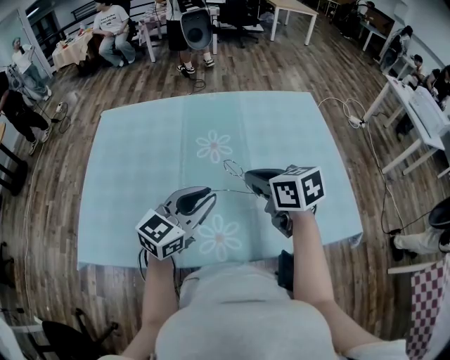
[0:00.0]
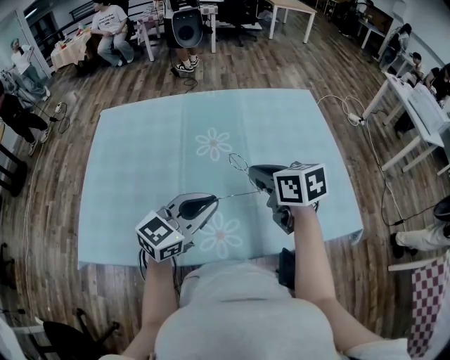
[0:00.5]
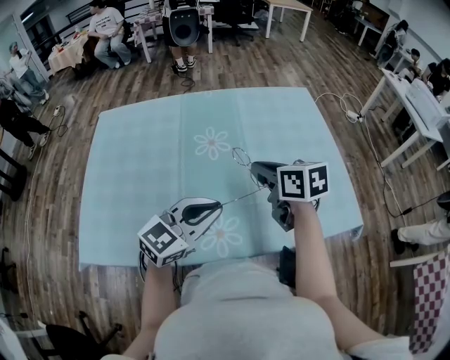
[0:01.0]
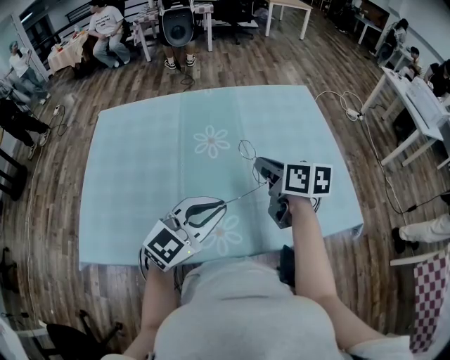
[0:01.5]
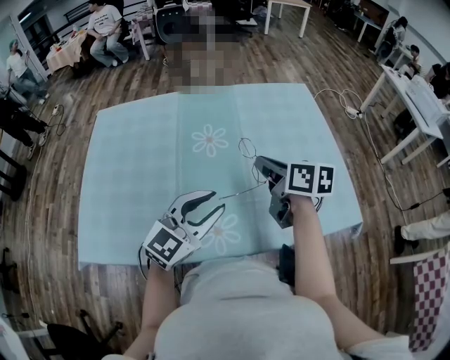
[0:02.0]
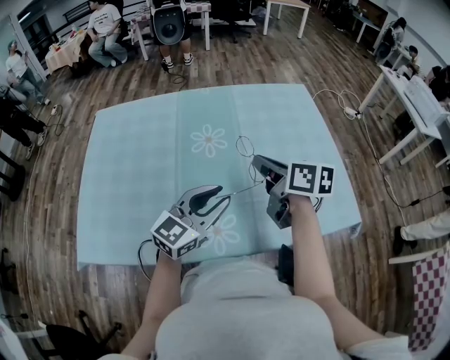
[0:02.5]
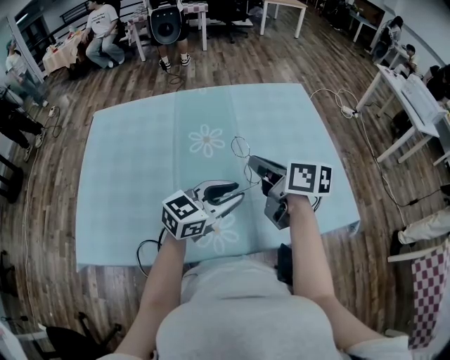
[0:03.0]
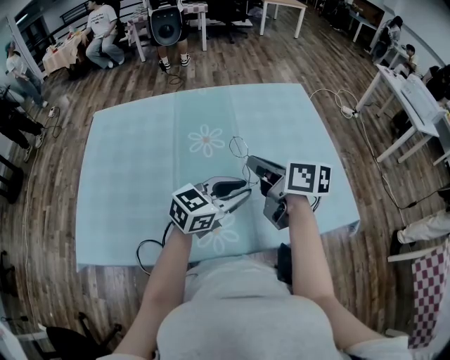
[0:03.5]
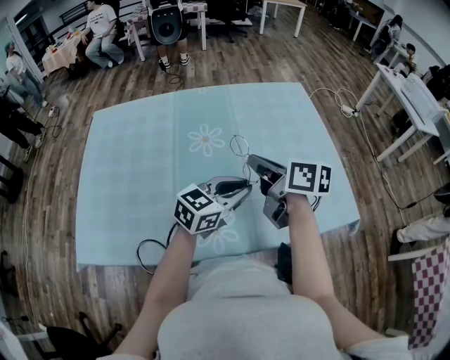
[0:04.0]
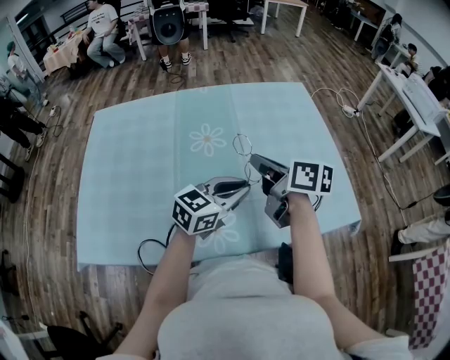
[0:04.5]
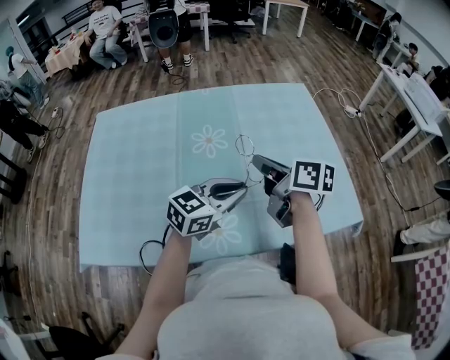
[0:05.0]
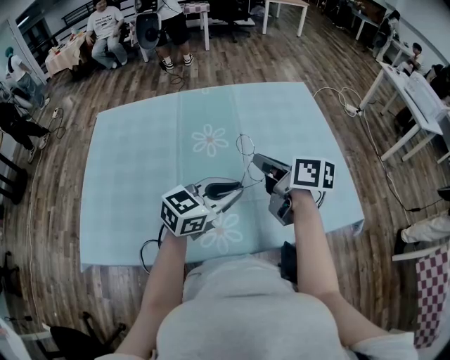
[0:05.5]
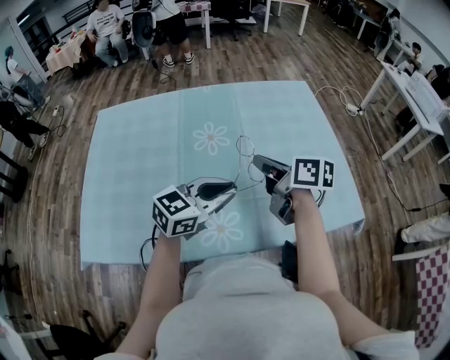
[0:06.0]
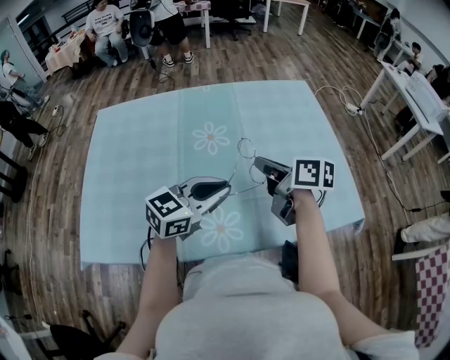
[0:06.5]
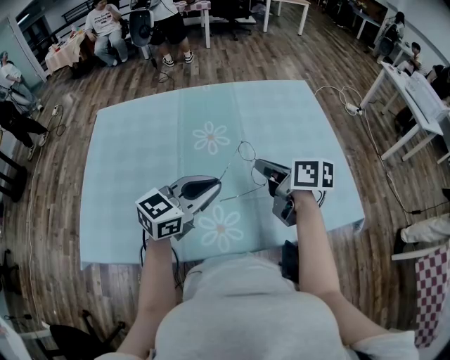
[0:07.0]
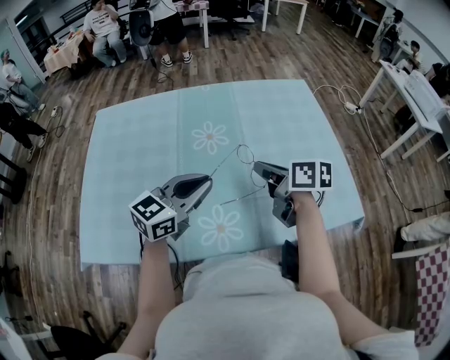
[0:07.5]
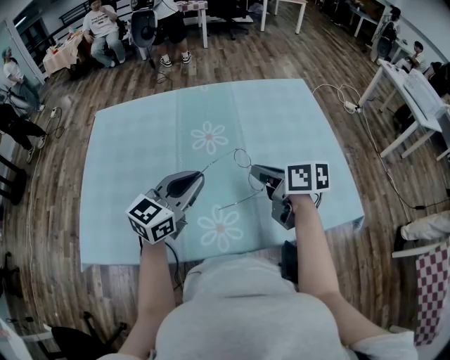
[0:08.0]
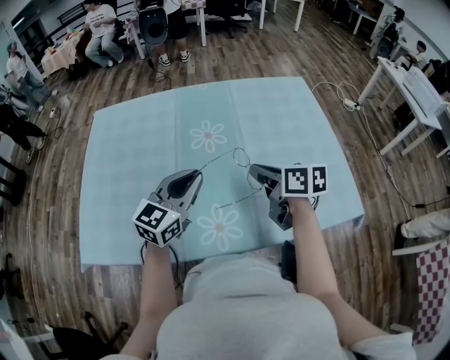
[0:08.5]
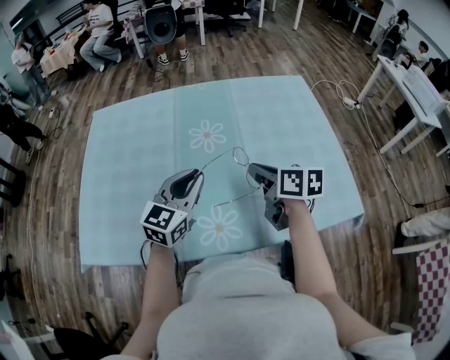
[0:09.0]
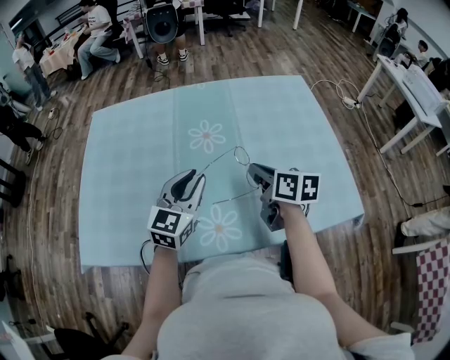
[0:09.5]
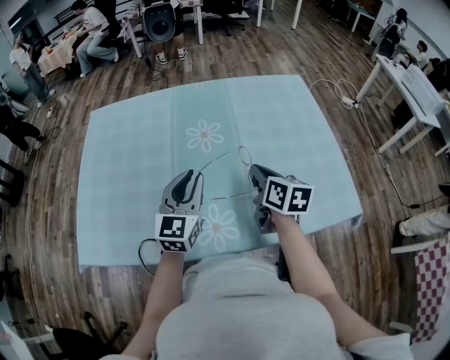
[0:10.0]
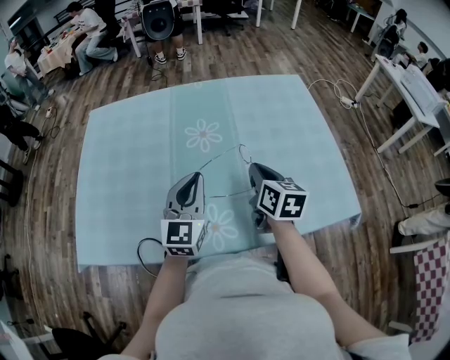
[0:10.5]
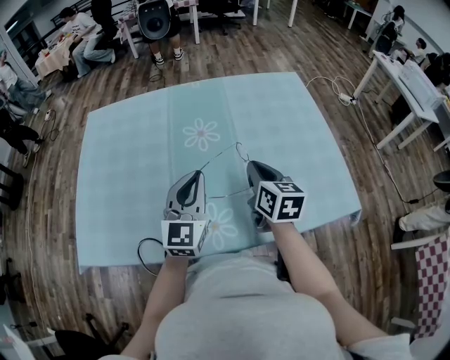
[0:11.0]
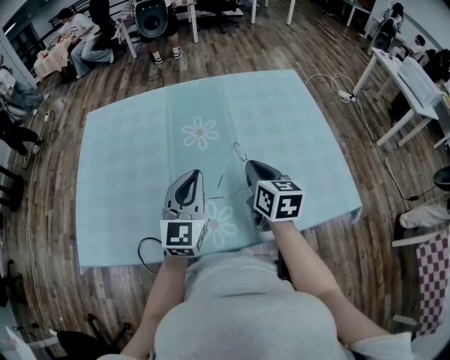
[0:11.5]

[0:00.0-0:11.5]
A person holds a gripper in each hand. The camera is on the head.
0:00.0 to 0:02.0: The right gripper turns by roughly 30 degrees.
0:02.0 to 0:04.0: The left gripper travels to the right and forward by some 10 cm, and changes its angle by some 20 degrees.
0:04.0 to 0:06.0: The left gripper goes about 5 cm to the left.
0:06.0 to 0:07.5: The left gripper travels to the left by about 5 cm.
0:07.5 to 0:09.5: The left gripper swivels approximately 30 degrees.
0:09.5 to 0:11.5: The right gripper swivels approximately 20 degrees.

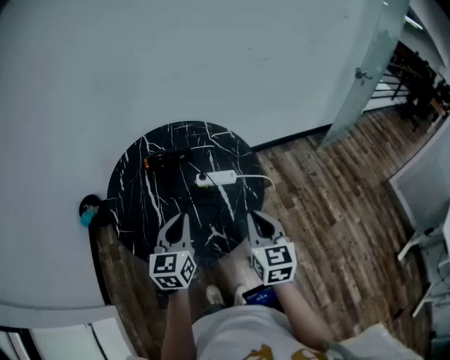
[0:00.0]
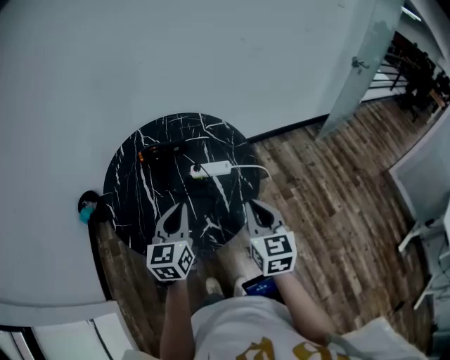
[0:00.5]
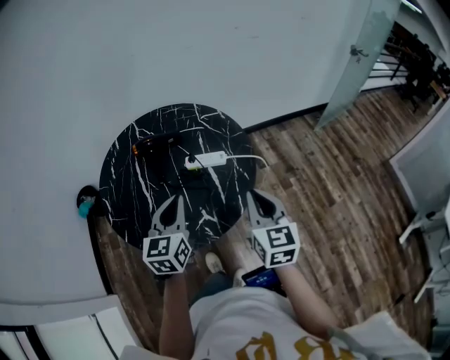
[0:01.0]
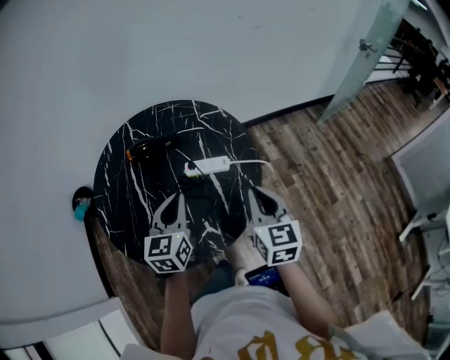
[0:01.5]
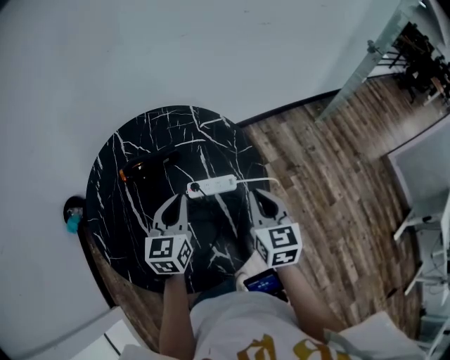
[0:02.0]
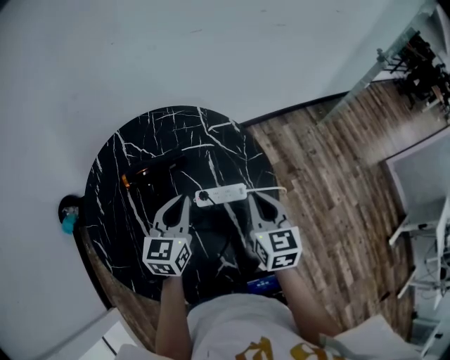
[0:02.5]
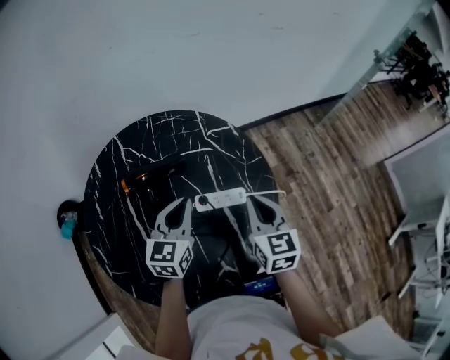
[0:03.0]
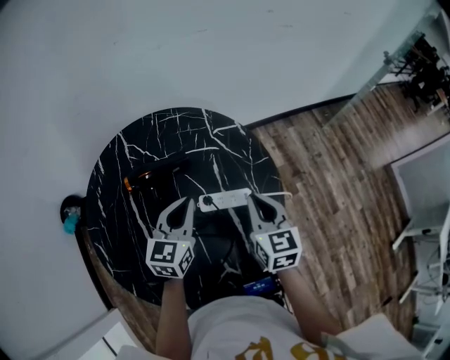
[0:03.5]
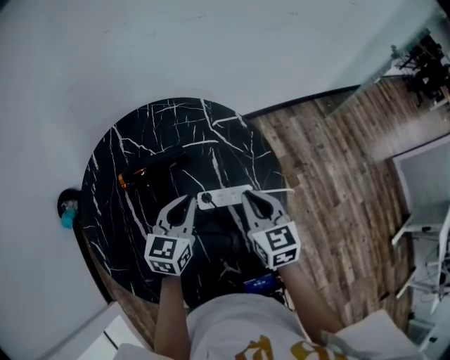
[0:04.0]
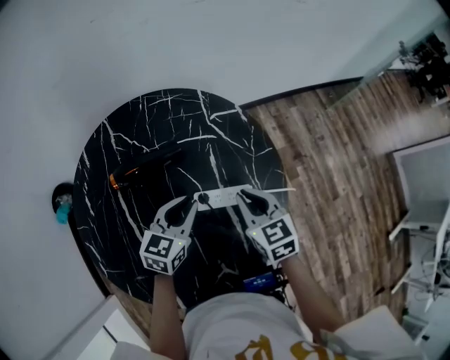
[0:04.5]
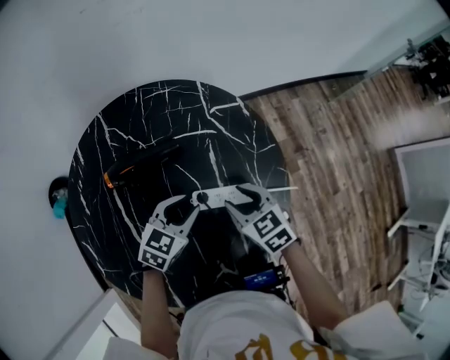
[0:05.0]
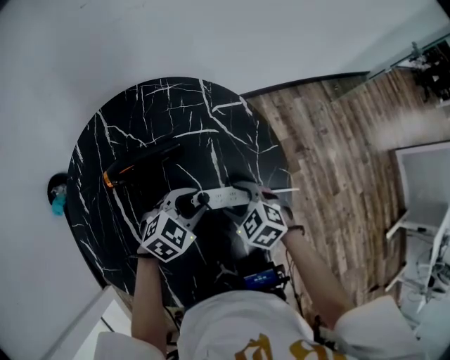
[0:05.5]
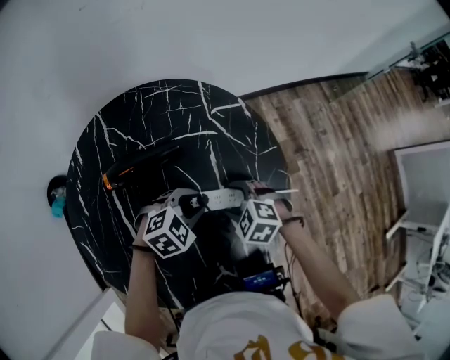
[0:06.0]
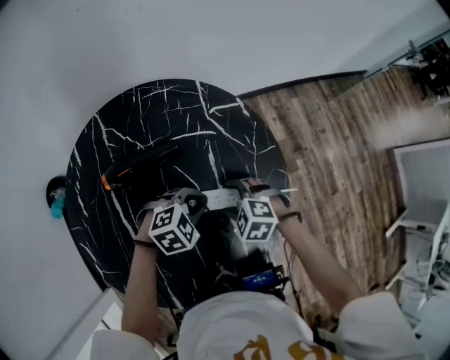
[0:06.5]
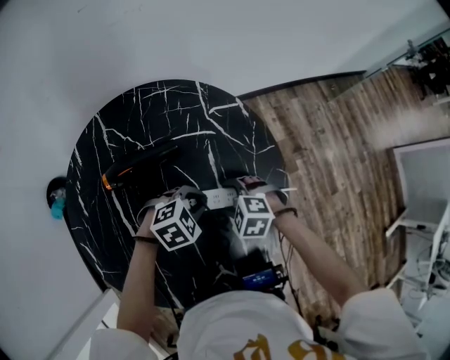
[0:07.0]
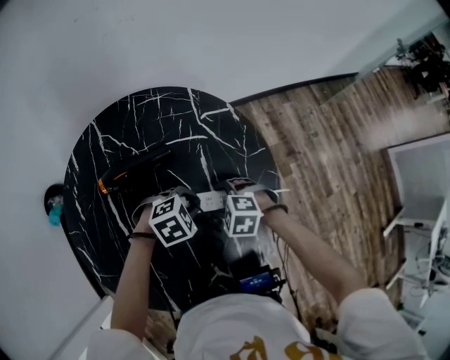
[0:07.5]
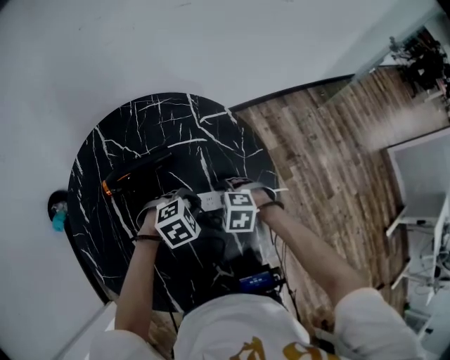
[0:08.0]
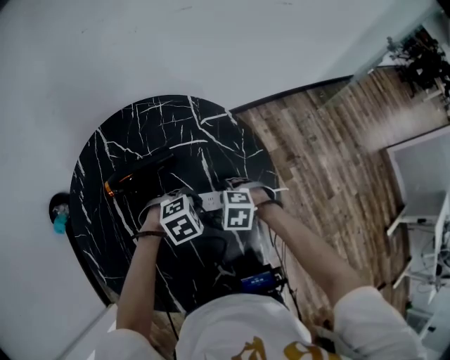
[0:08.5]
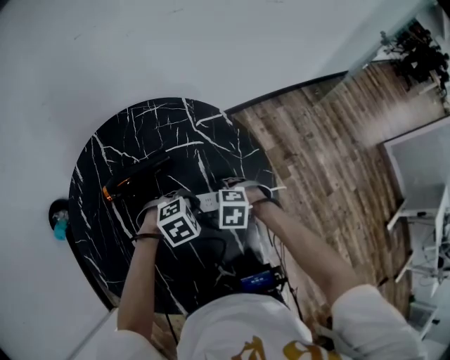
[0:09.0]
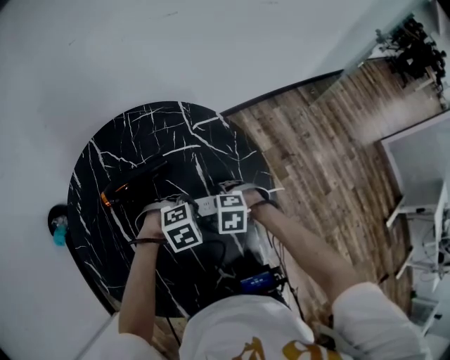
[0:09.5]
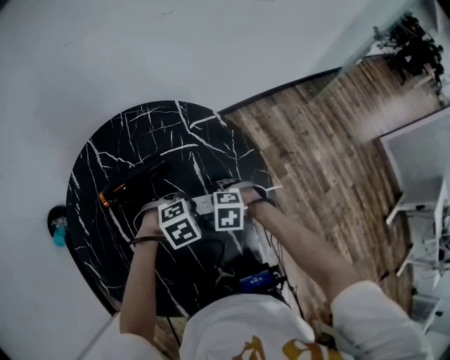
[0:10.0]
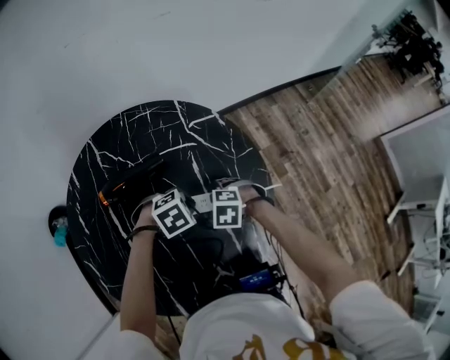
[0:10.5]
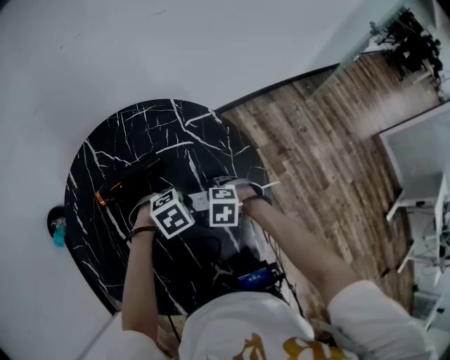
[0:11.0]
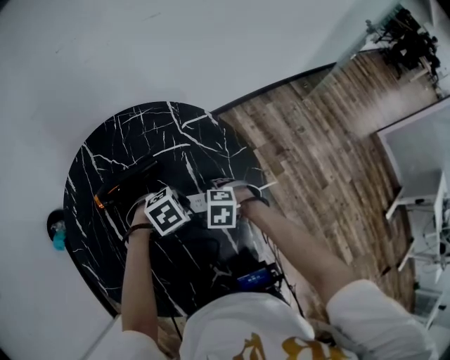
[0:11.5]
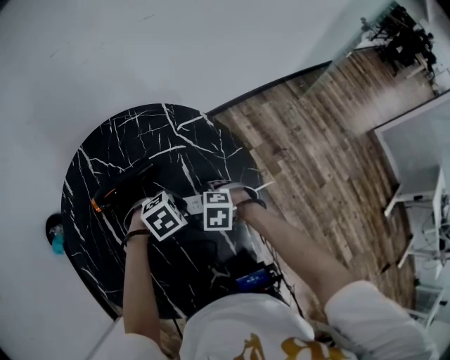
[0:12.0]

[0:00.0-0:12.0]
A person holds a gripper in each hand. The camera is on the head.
0:00.0 to 0:02.0: Both grippers move forward, about 20 cm.
0:02.0 to 0:04.0: The left gripper heads downward and forward, covering about 10 cm. The right gripper moves to the left, forward and downward, some 10 cm.
0:04.0 to 0:06.0: The two grippers go some 15 cm downward. The left gripper points its fingers about 30 degrees further downward, and opens its fingers, while the right gripper angles its fingers downward, by some 40 degrees, and opens.
0:06.0 to 0:08.0: There are only small adjustments of the grippers.
0:08.0 to 0:12.0: The grippers make only small movements.

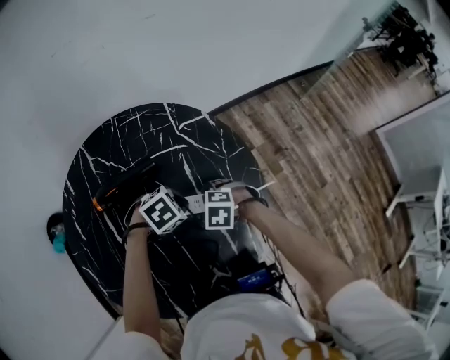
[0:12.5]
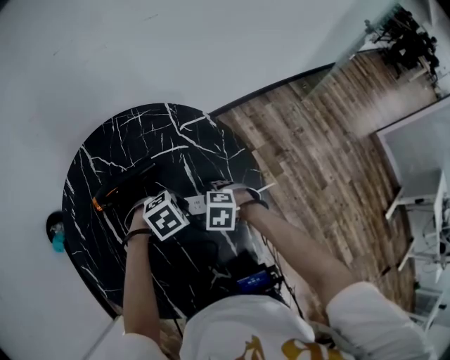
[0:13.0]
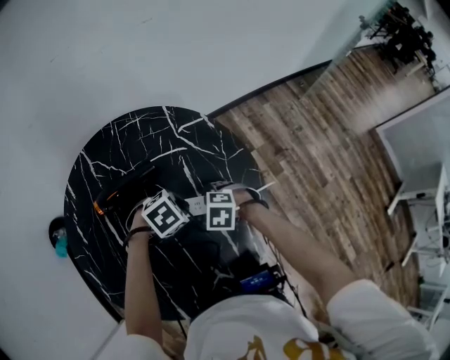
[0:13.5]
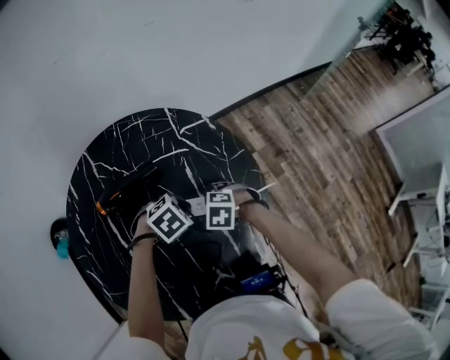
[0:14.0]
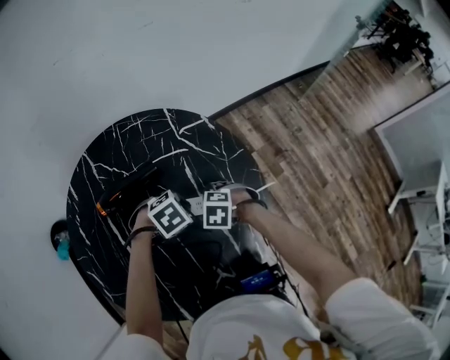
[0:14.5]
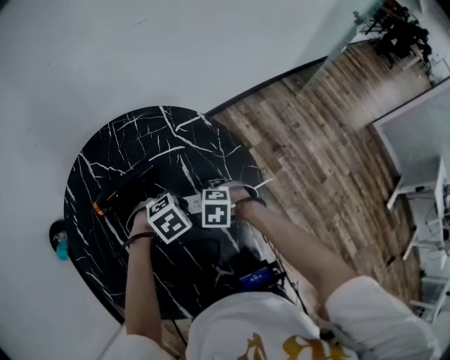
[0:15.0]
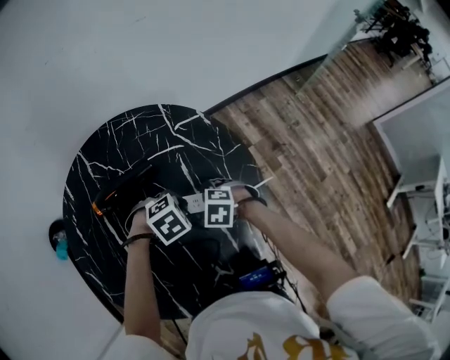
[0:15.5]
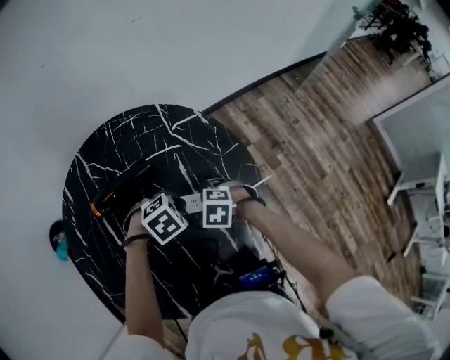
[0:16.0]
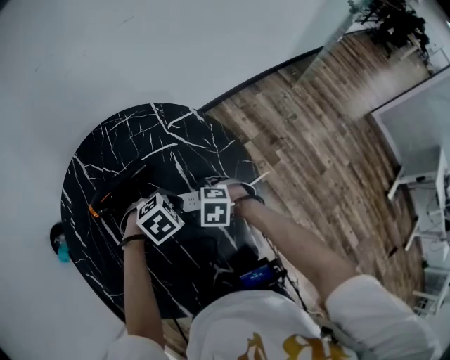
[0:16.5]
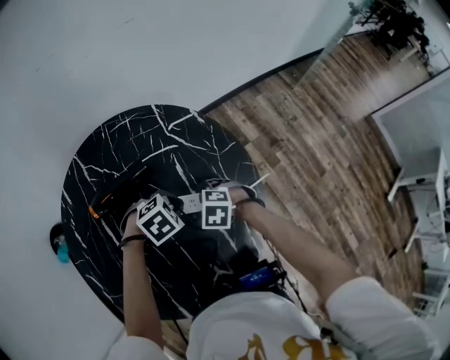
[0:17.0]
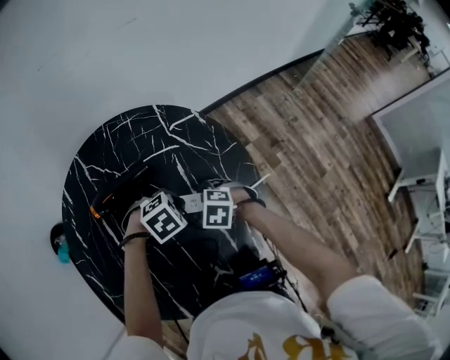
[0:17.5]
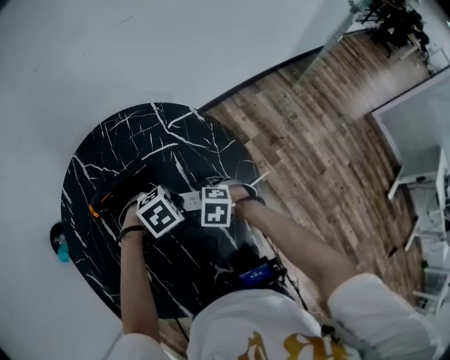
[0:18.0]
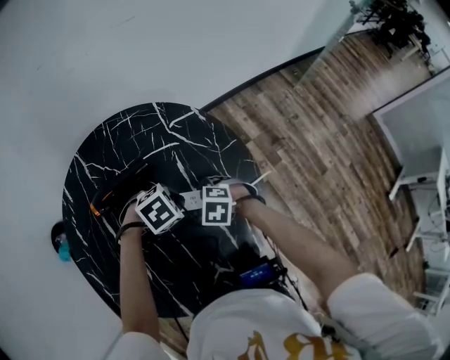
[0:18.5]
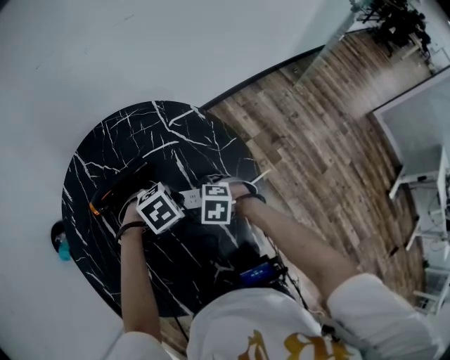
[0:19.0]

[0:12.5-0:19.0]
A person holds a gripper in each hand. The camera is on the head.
0:12.5 to 0:19.0: The grippers move only a little.
